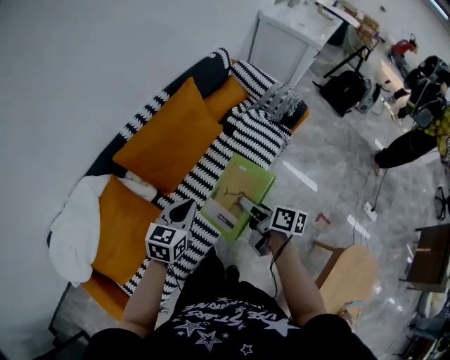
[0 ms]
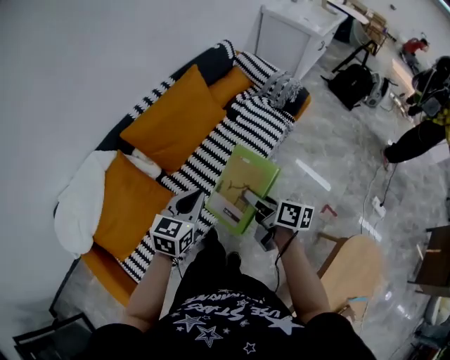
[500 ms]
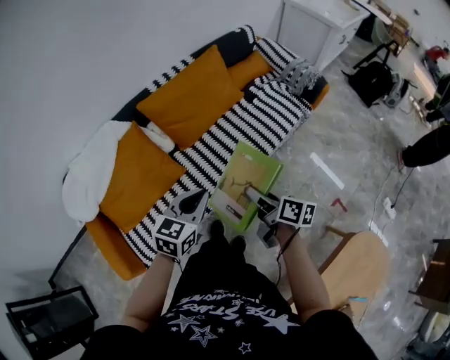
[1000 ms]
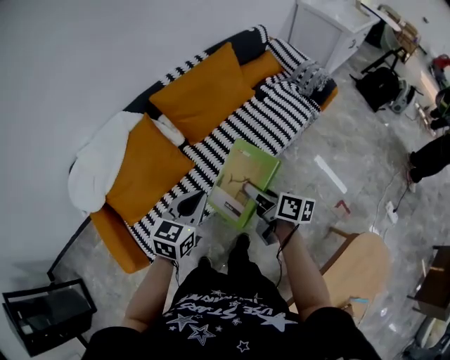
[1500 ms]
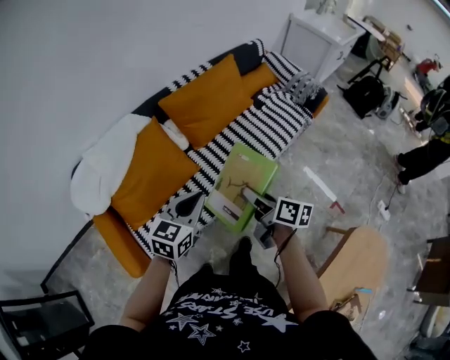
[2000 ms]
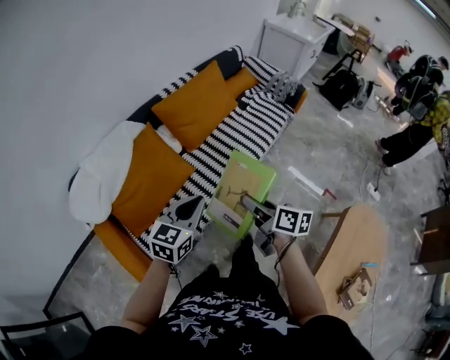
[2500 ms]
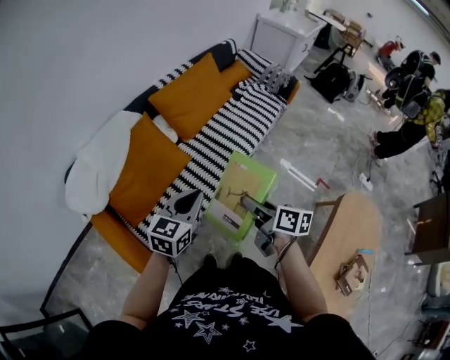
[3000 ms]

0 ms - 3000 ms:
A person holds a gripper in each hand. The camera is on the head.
0 ms - 1500 ms: Both grippers move backward, approximately 20 cm.
1500 ms - 3000 ms: Both grippers move backward and to the left, approximately 20 cm.

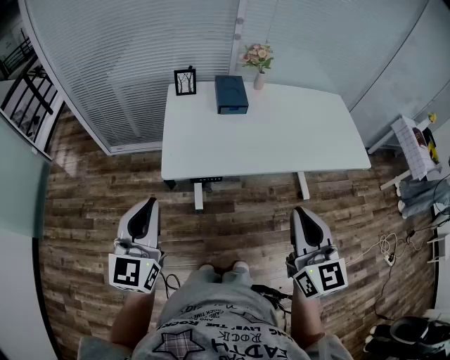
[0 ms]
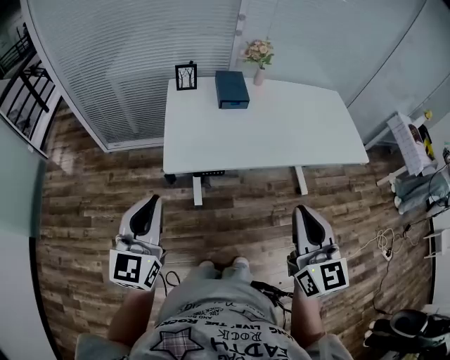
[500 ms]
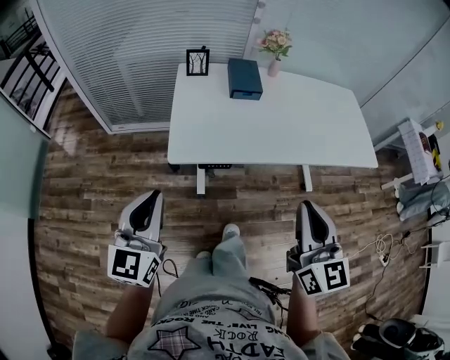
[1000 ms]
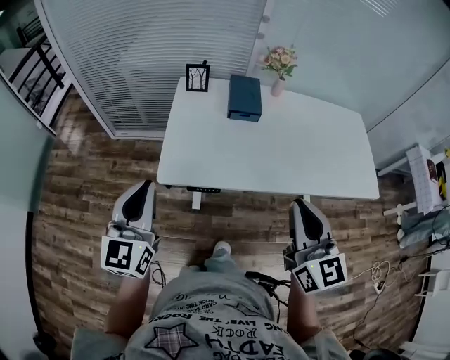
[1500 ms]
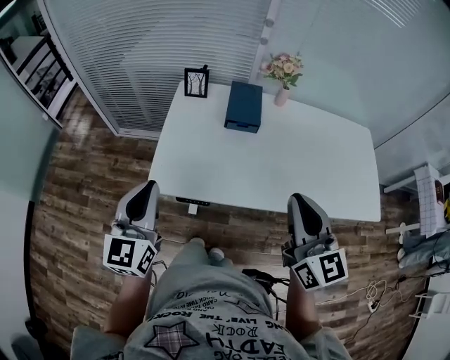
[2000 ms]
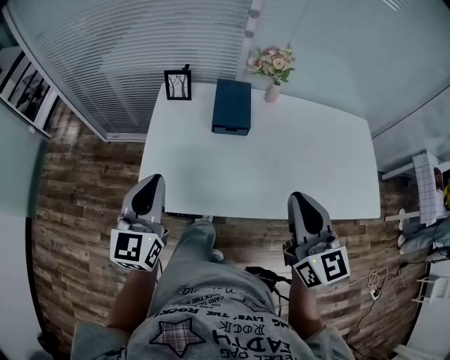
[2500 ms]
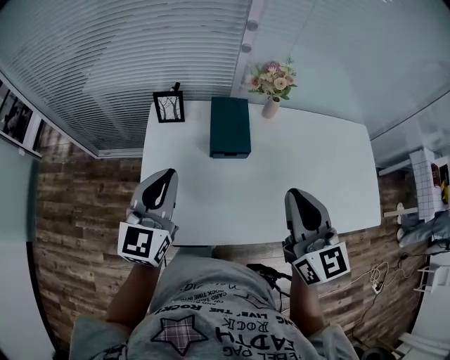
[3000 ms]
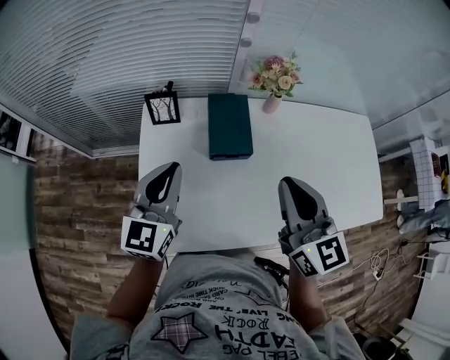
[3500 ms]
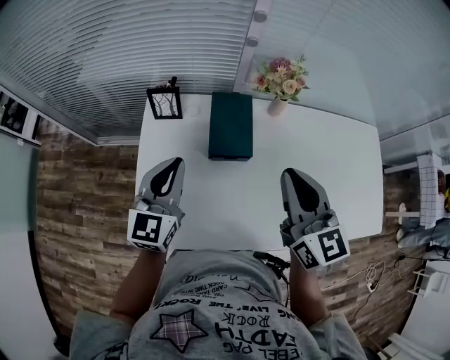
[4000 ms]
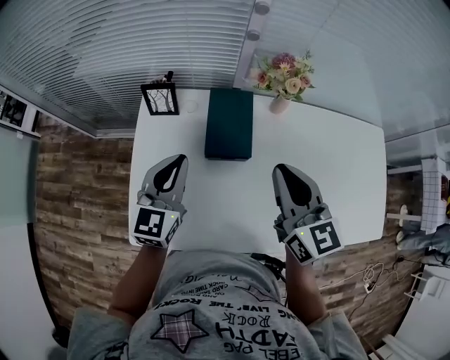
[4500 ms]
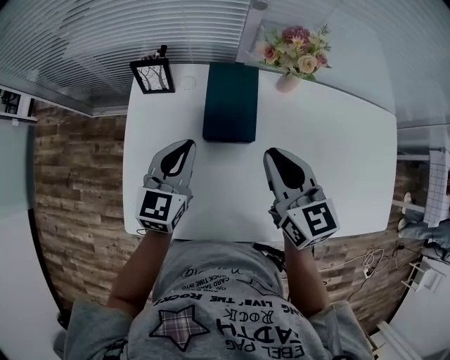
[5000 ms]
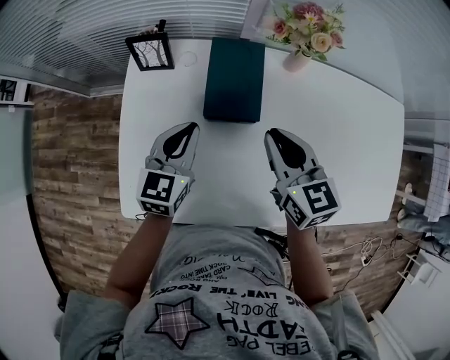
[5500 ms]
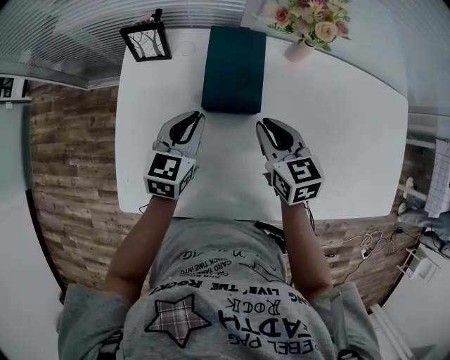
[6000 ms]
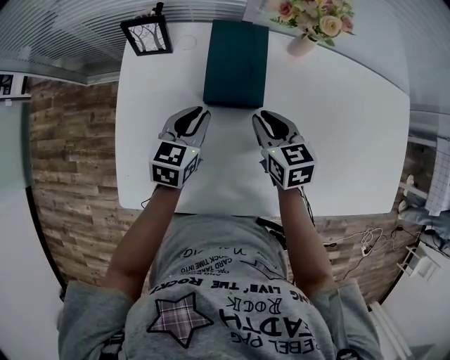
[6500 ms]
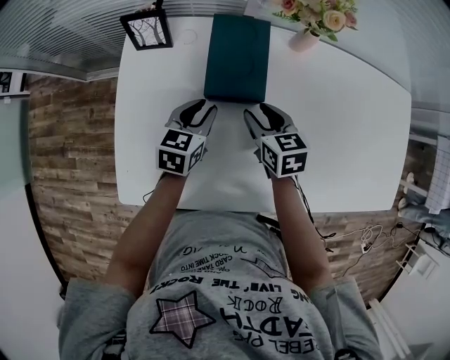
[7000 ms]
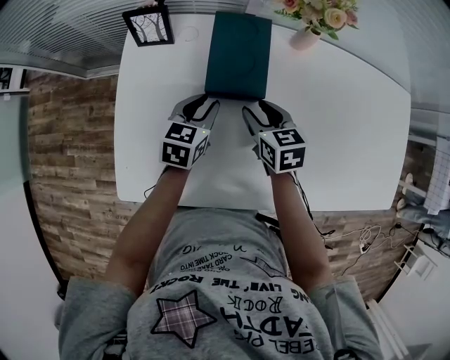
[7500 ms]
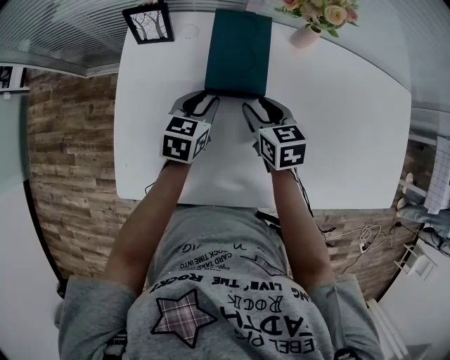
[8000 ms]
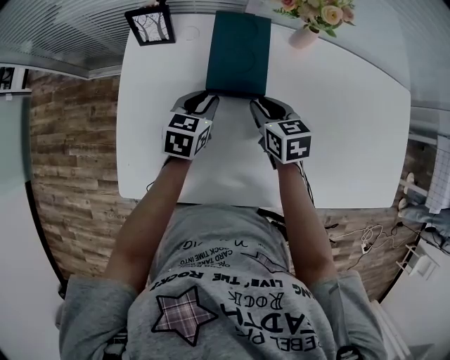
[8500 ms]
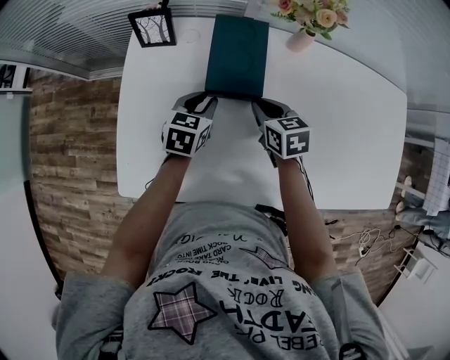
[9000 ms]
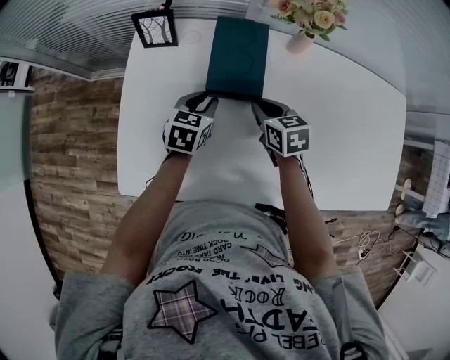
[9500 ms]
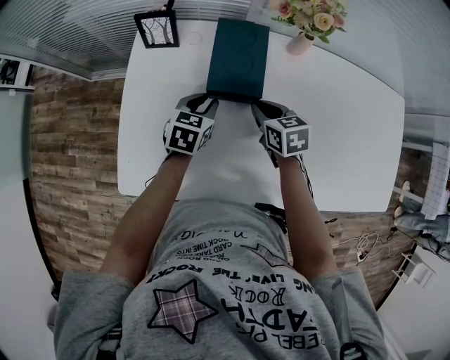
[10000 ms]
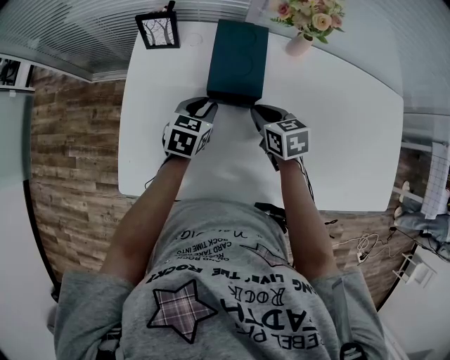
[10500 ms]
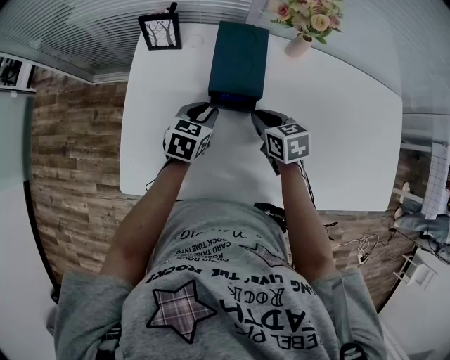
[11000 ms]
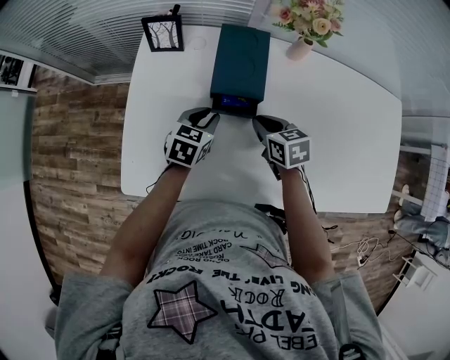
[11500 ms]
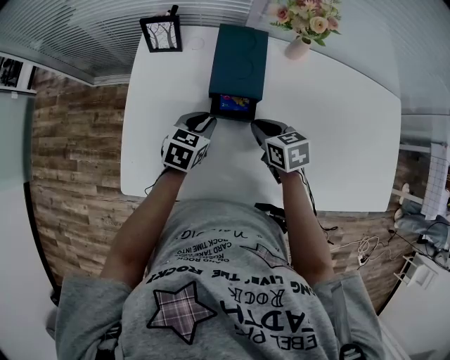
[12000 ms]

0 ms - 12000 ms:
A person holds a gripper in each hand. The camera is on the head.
0 ms - 2000 ms: The left gripper shifts roughly 15 cm forward and to the right. Meanwhile the right gripper travels forward by about 20 cm.
2000 ms - 4000 ms: The two grippers go about 30 cm forward.
4000 ms - 6000 ms: The two grippers go some 20 cm downward. The right gripper changes its angle by some 30 degrees; the left gripper turns by about 20 degrees.
6000 ms - 8000 ms: The grippers both shift downward by approximately 5 cm. The left gripper opens its fingers. The right gripper opens up.
8000 ms - 10000 ms: The right gripper closes its fingers.
10000 ms - 12000 ms: The left gripper moves some 5 cm. The right gripper is displaced backward by about 5 cm.

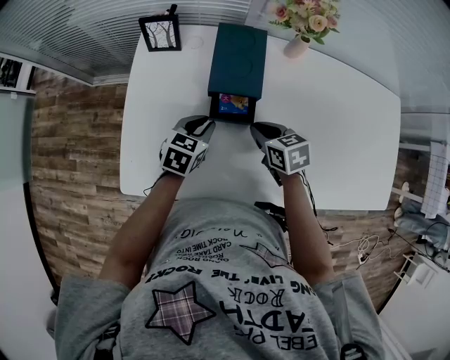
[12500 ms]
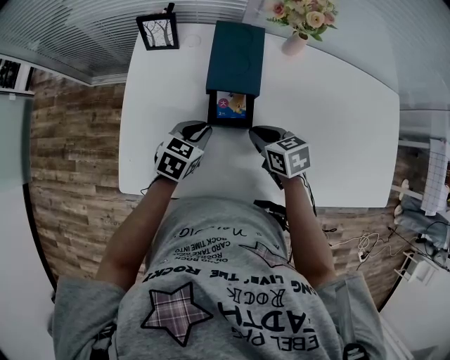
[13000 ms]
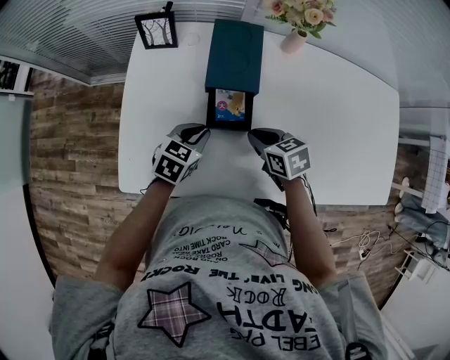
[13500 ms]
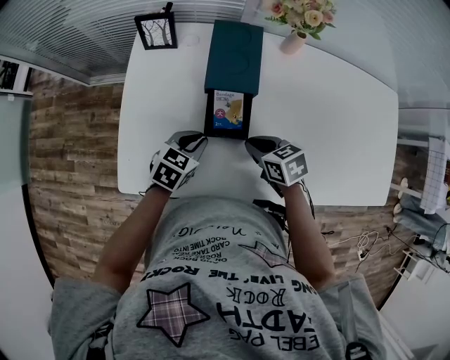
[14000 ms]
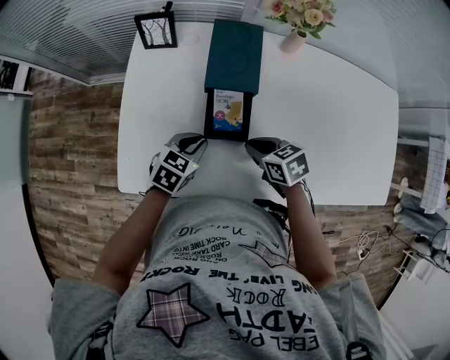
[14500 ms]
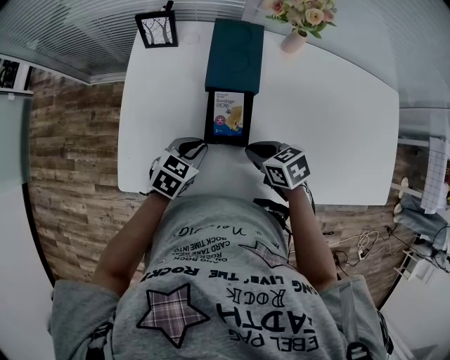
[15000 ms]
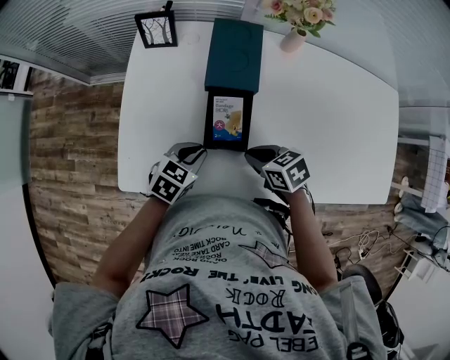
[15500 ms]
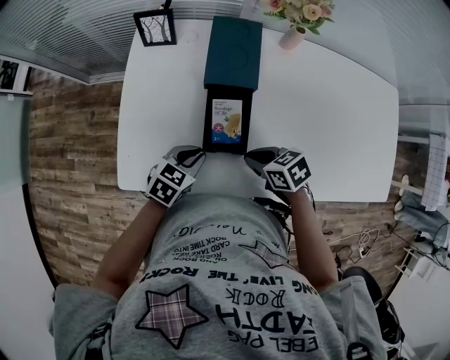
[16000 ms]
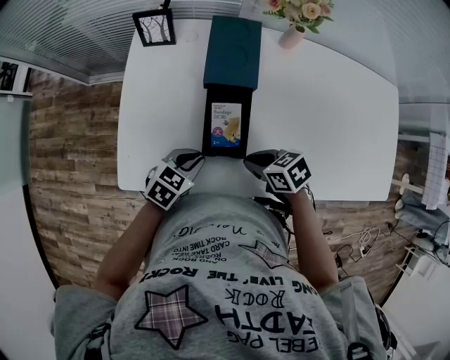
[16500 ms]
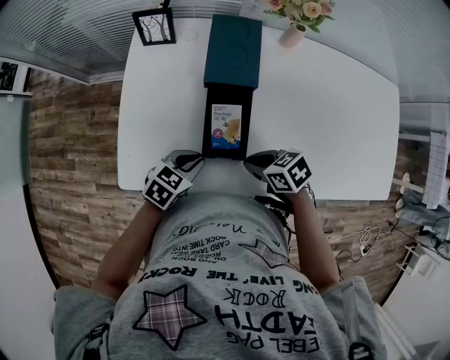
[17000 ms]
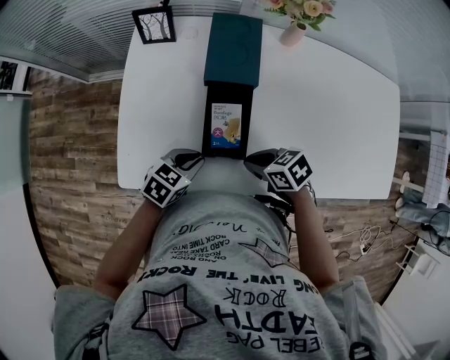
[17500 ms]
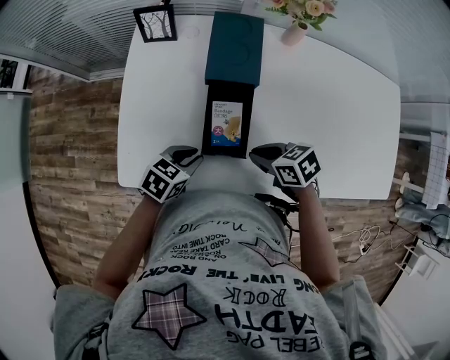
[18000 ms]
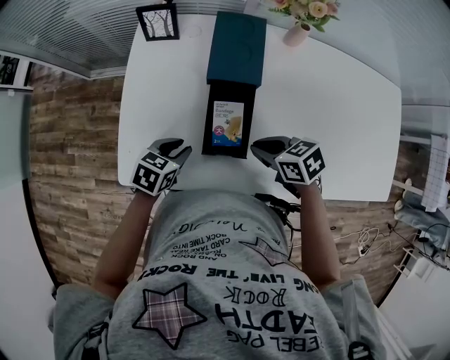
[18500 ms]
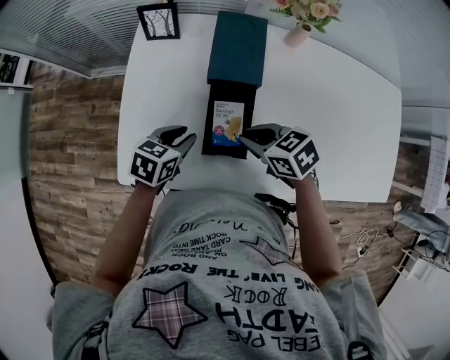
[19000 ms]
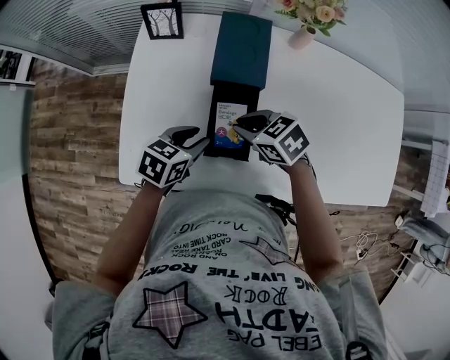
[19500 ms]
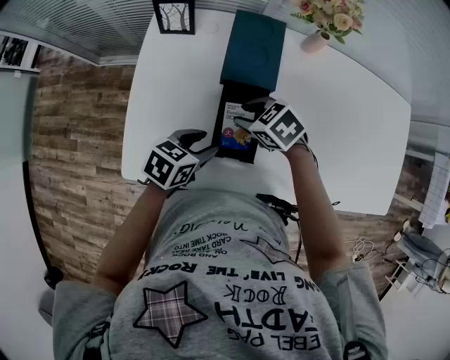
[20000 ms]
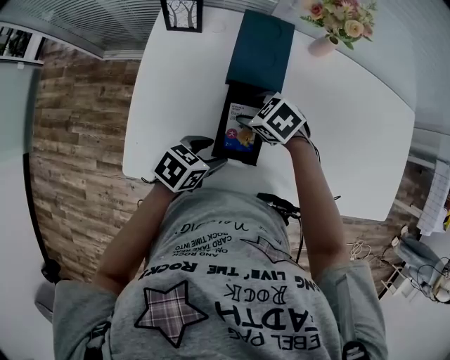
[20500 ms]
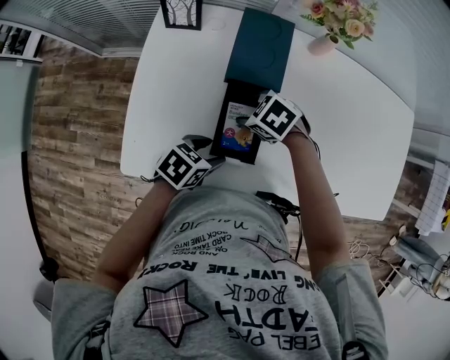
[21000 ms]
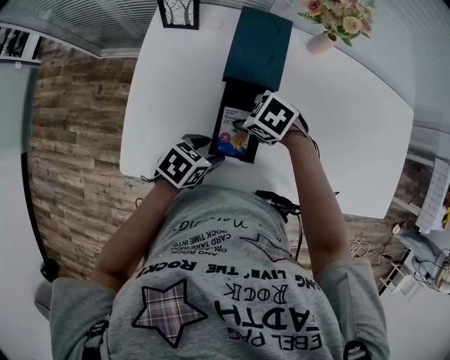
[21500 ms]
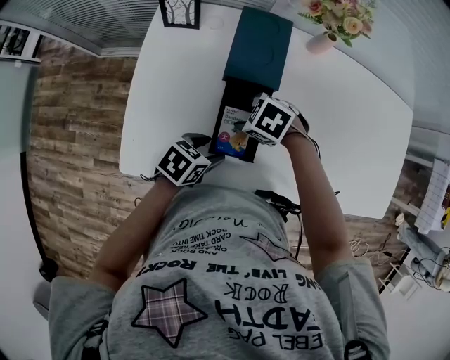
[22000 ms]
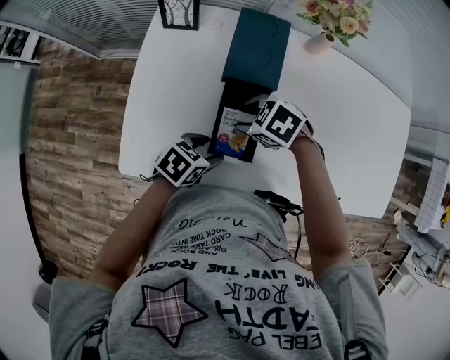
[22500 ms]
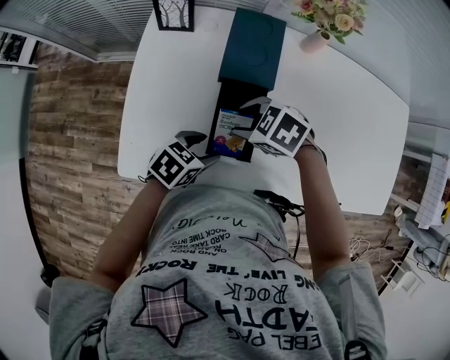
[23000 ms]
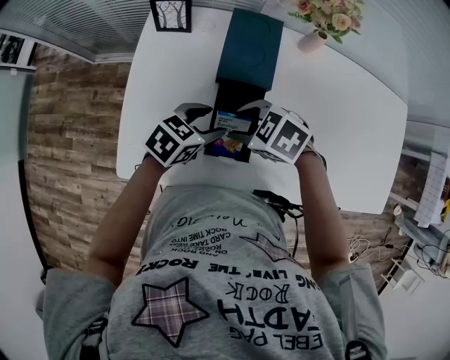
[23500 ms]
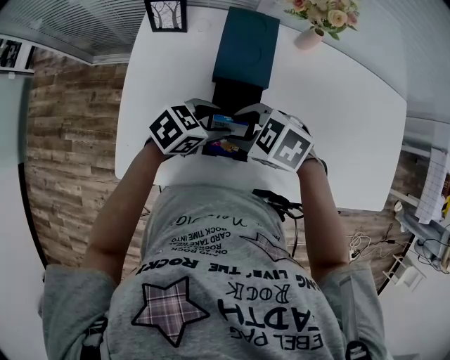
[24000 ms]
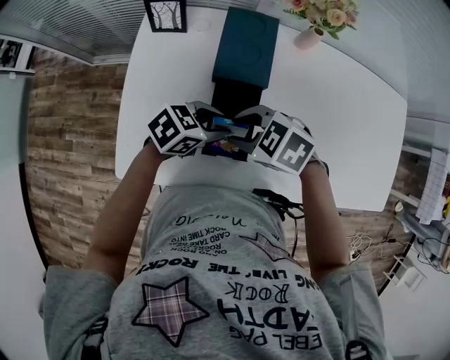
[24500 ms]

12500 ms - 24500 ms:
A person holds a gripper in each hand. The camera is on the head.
12500 ms - 14500 ms: The two grippers go about 5 cm backward.
14500 ms - 16500 ms: The right gripper changes place by roughly 5 cm; the left gripper ends up some 5 cm from where it was.
16500 ms - 18500 ms: The left gripper moves roughly 5 cm.
18500 ms - 20500 ms: The left gripper moves approximately 5 cm, and opens its fingers, while the right gripper shifts by approximately 15 cm, turns by some 30 degrees, and opens.
20500 ms - 22500 ms: The grippers make only small movements.
22500 ms - 24500 ms: The left gripper shifts by about 10 cm, and changes its angle by approximately 20 degrees; the right gripper heads upward, covering some 5 cm.
